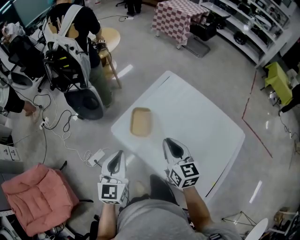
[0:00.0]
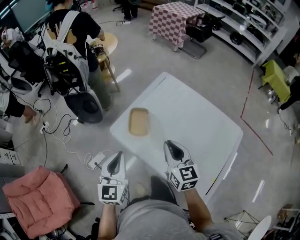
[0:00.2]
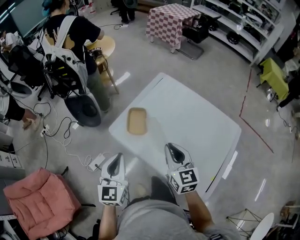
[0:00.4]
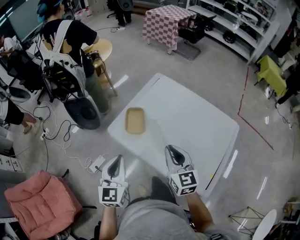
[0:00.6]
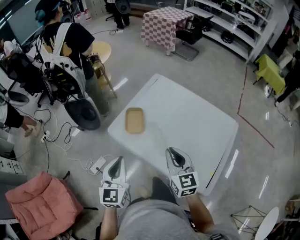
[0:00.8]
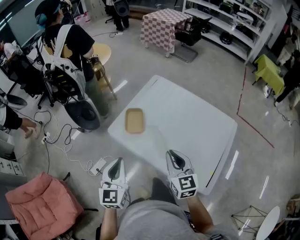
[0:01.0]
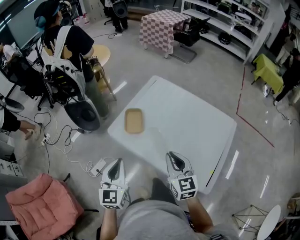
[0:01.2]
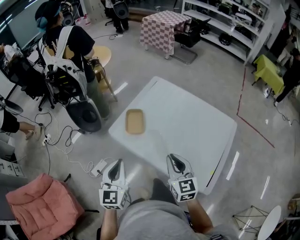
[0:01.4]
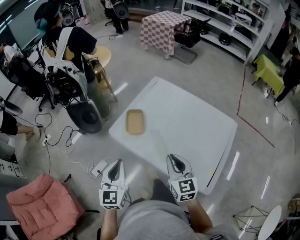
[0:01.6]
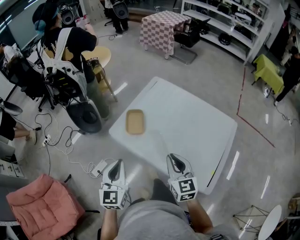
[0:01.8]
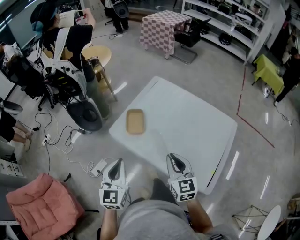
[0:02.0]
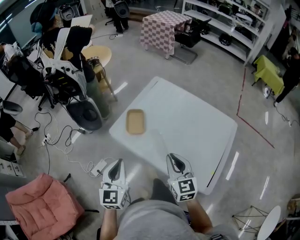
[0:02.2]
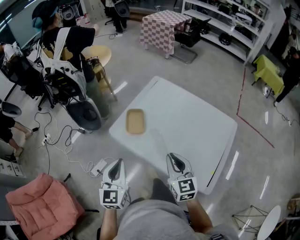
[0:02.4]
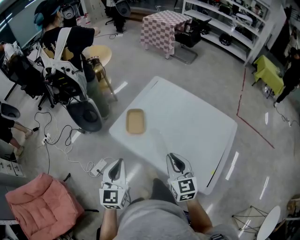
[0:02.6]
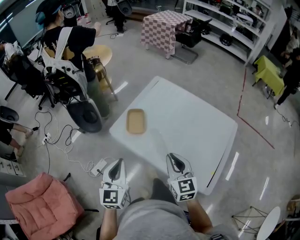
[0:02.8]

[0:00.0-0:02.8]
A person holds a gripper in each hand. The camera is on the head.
0:00.0 to 0:01.4: The left gripper moves backward, roughly 10 cm. The right gripper heads backward, covering roughly 15 cm.
0:01.4 to 0:02.8: There are only small adjustments of the grippers.

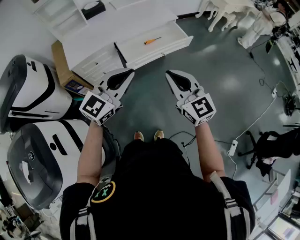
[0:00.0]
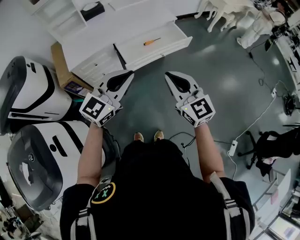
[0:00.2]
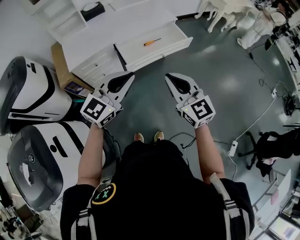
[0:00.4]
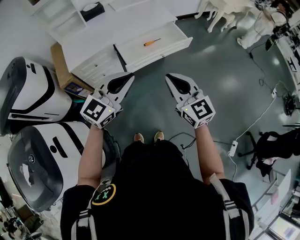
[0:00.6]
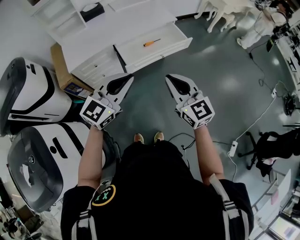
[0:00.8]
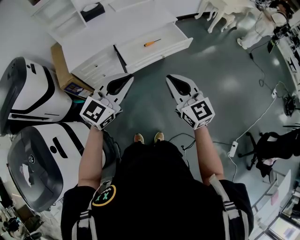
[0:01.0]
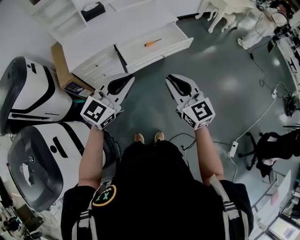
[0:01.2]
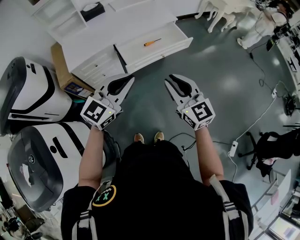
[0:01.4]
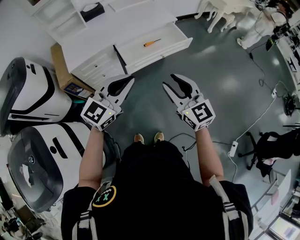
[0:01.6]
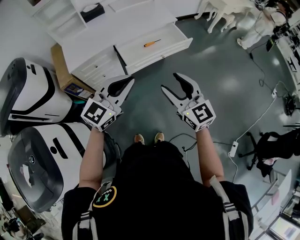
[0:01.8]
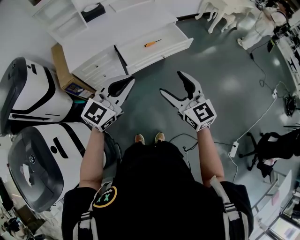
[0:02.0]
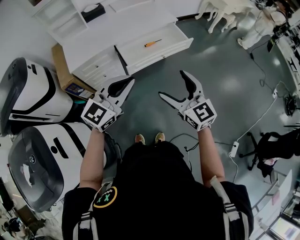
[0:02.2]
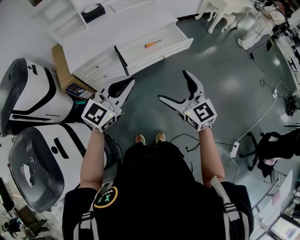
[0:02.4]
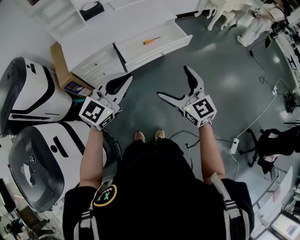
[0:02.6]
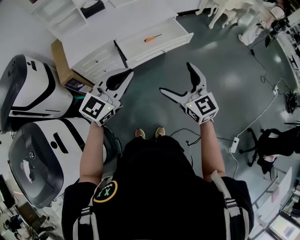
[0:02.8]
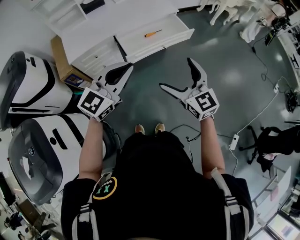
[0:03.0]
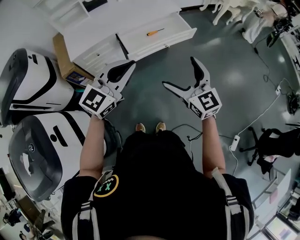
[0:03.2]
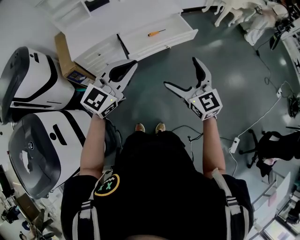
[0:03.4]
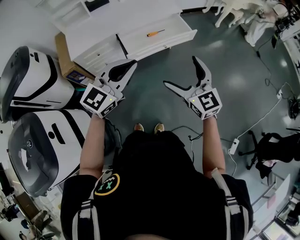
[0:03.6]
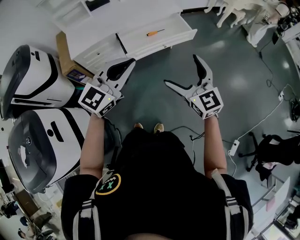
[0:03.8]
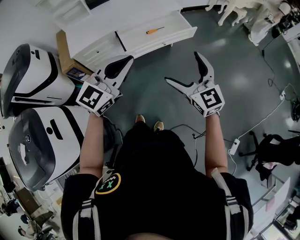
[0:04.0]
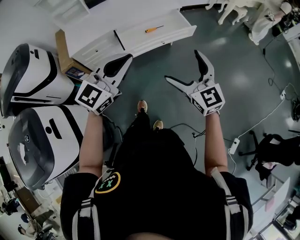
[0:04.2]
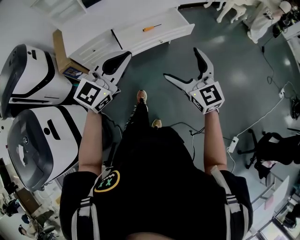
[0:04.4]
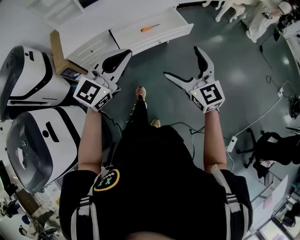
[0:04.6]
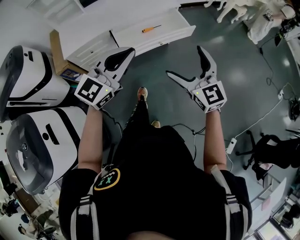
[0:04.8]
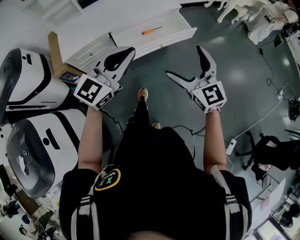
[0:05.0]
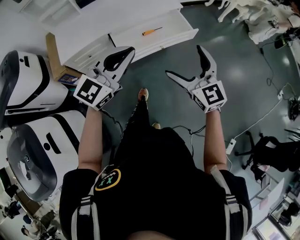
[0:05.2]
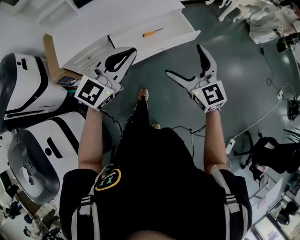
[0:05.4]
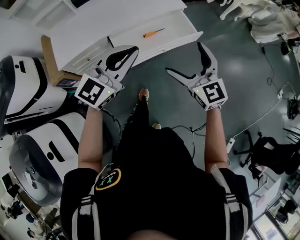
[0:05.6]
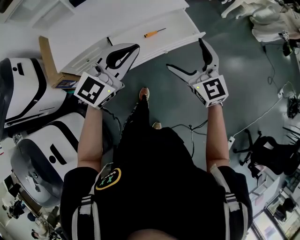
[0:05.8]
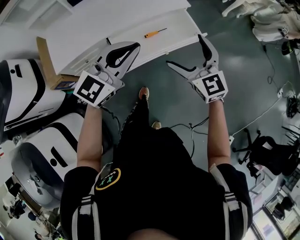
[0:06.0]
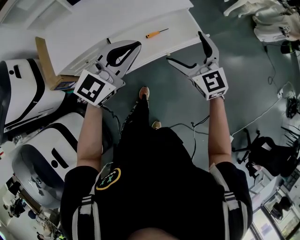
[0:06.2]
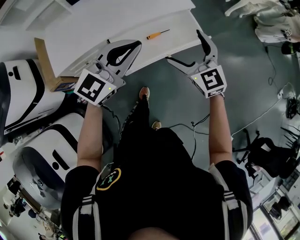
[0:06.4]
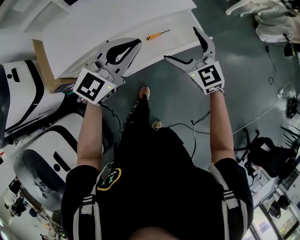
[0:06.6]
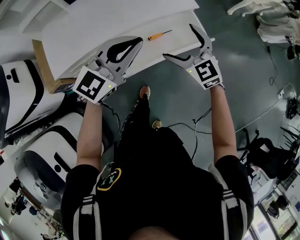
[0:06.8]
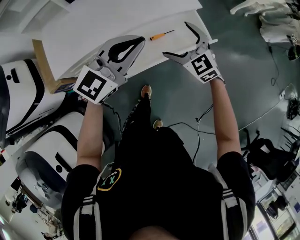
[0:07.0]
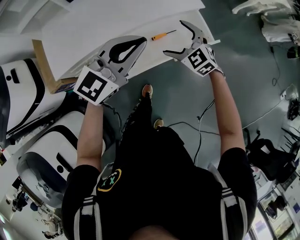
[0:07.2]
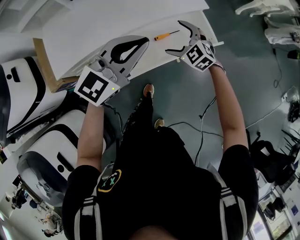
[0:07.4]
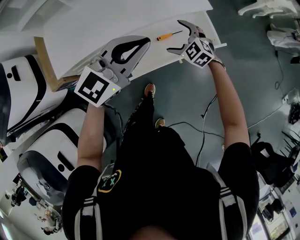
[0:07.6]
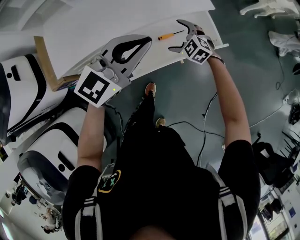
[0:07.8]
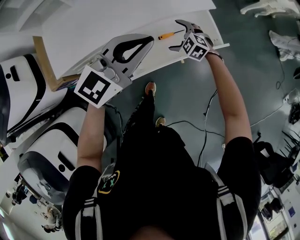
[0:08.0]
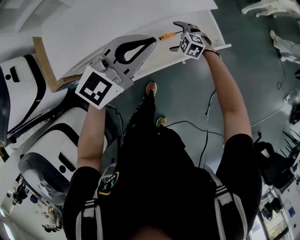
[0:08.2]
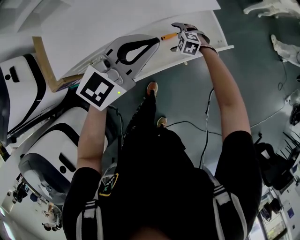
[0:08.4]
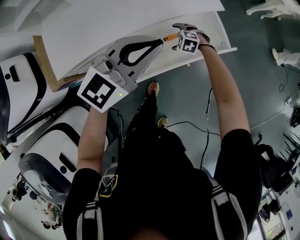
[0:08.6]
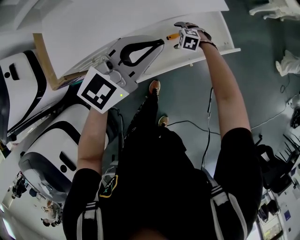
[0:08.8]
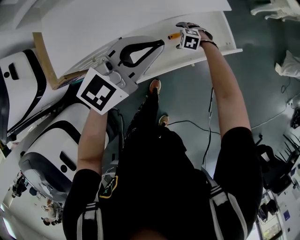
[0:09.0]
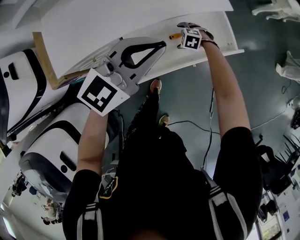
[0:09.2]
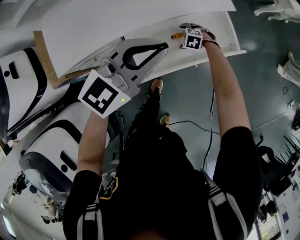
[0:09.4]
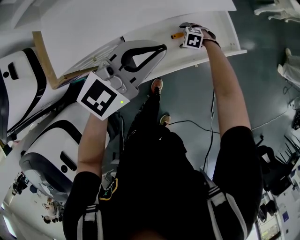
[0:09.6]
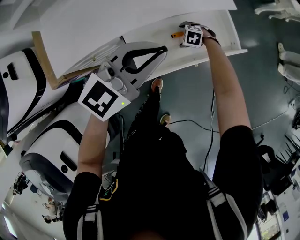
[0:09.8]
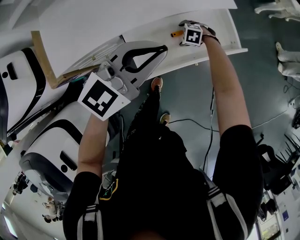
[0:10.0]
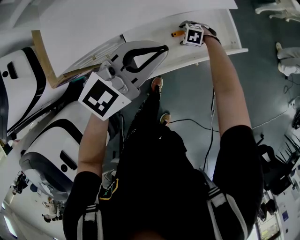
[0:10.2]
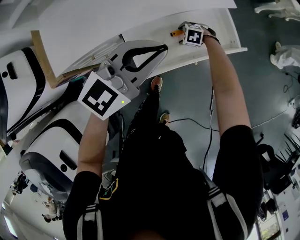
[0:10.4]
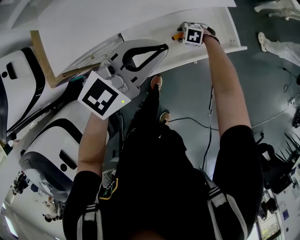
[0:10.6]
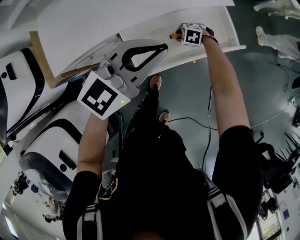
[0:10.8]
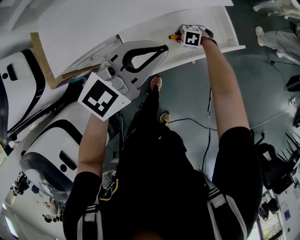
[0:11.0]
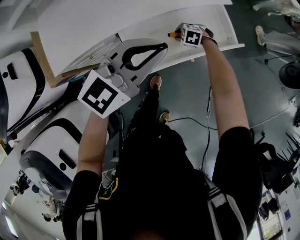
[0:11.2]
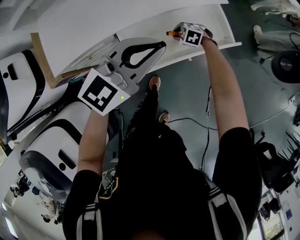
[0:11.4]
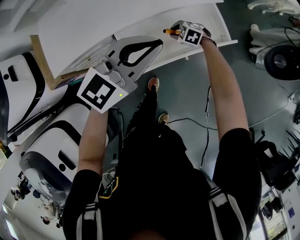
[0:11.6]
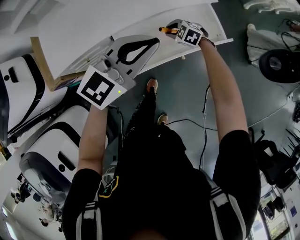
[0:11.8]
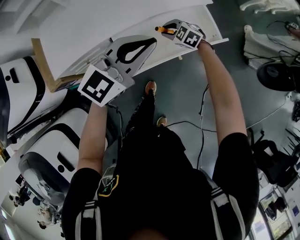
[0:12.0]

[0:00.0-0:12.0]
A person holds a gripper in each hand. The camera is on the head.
0:00.0 to 0:01.6: There are only small adjustments of the grippers.
0:01.6 to 0:03.0: The right gripper opens up.
0:03.0 to 0:04.4: The grippers both shift to the right by approximately 5 cm.
0:04.4 to 0:06.0: Both grippers travel together forward, approximately 25 cm.
0:06.0 to 0:07.6: The right gripper is displaced downward and forward by approximately 30 cm, and tilts its fingers roughly 30 degrees downward. The left gripper goes some 10 cm forward.
0:07.6 to 0:09.0: The right gripper is displaced downward by approximately 20 cm, and tilts its fingers roughly 30 degrees downward.
0:09.0 to 0:10.4: The grippers move only a little.
0:10.4 to 0:12.0: The left gripper moves approximately 5 cm. The right gripper is displaced upward by about 15 cm, changes its angle by approximately 30 degrees, and closes up.

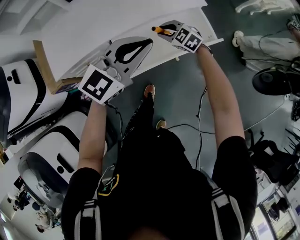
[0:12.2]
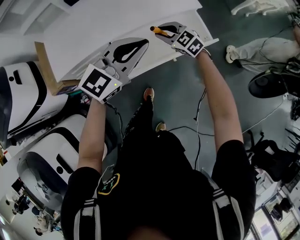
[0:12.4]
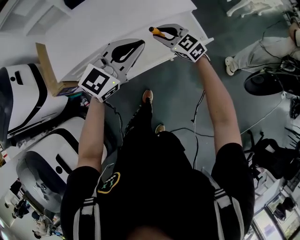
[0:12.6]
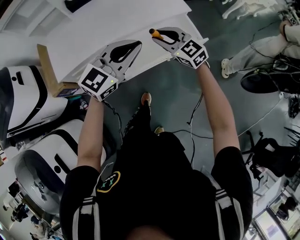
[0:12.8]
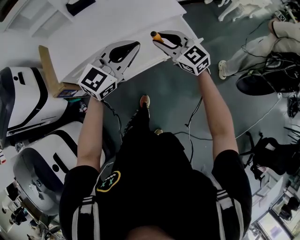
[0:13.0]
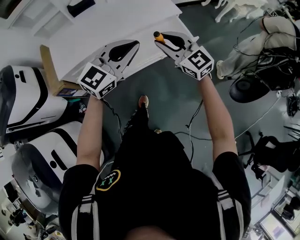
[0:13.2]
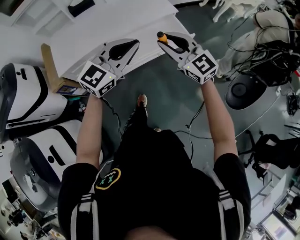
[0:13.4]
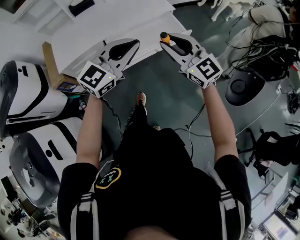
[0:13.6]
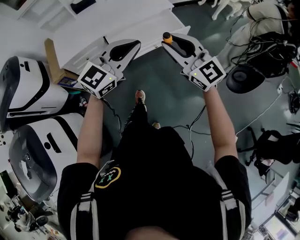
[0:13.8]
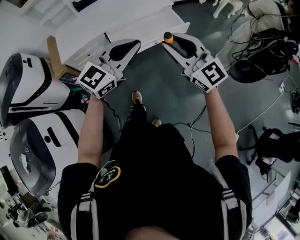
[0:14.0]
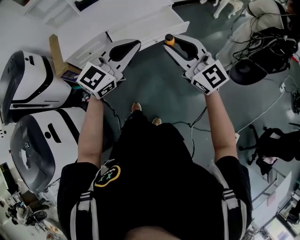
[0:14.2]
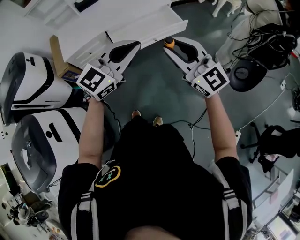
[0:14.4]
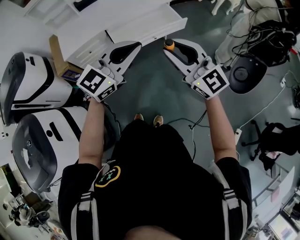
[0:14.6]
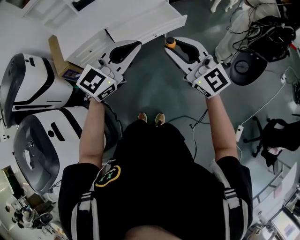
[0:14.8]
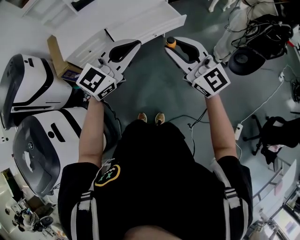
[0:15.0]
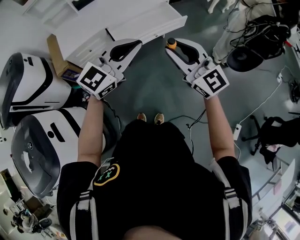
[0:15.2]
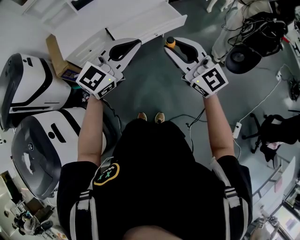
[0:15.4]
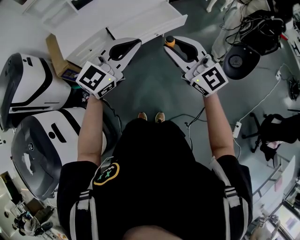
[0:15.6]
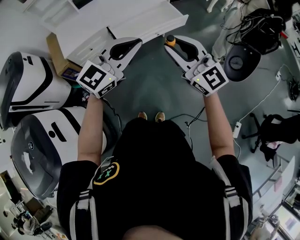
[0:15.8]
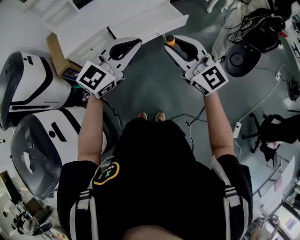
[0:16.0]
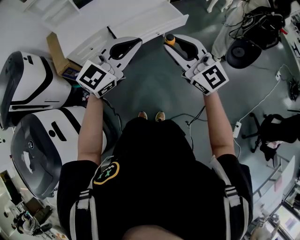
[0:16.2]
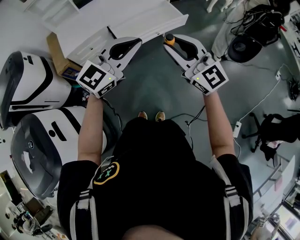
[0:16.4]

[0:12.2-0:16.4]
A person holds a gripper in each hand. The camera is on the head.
0:12.2 to 0:13.6: The left gripper goes about 20 cm backward and upward, while the right gripper travels upward and backward by approximately 40 cm, and angles its fingers upward, by roughly 40 degrees.
0:13.6 to 0:15.0: The grippers both shift backward by roughly 15 cm.
0:15.0 to 0:16.4: There are only small adjustments of the grippers.

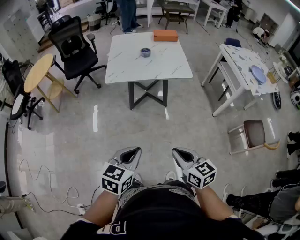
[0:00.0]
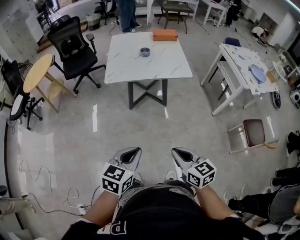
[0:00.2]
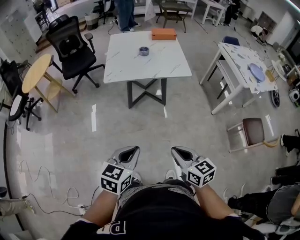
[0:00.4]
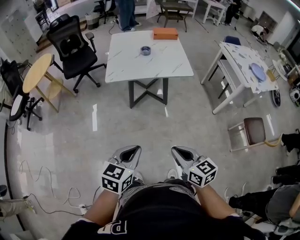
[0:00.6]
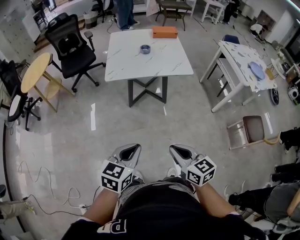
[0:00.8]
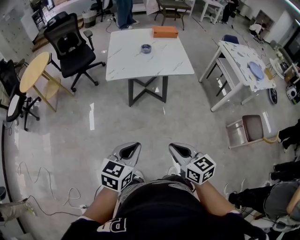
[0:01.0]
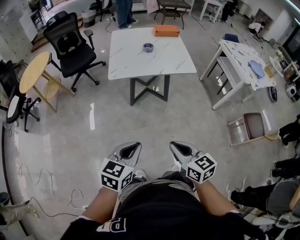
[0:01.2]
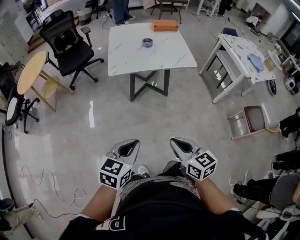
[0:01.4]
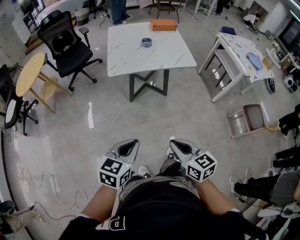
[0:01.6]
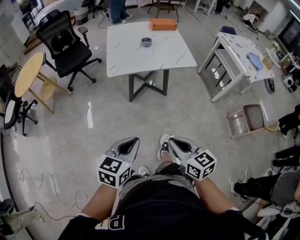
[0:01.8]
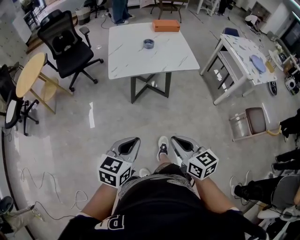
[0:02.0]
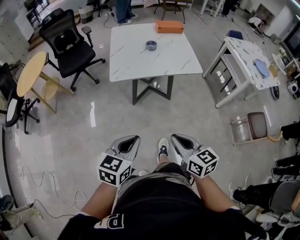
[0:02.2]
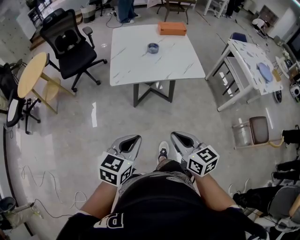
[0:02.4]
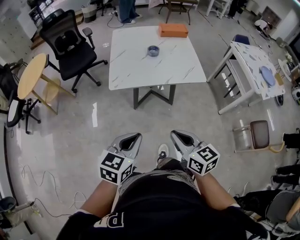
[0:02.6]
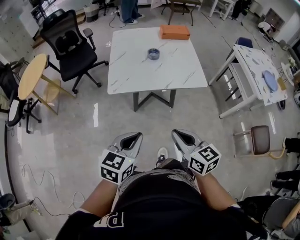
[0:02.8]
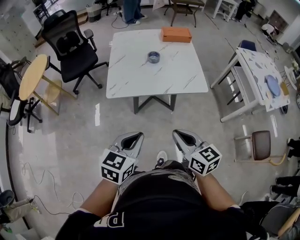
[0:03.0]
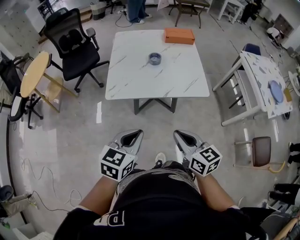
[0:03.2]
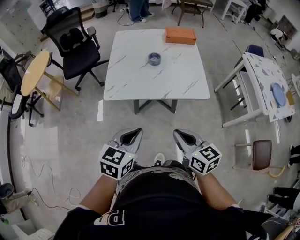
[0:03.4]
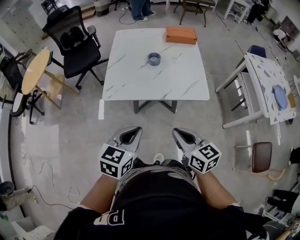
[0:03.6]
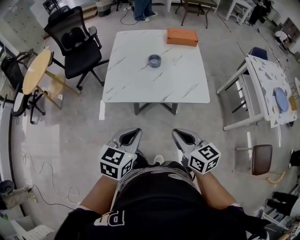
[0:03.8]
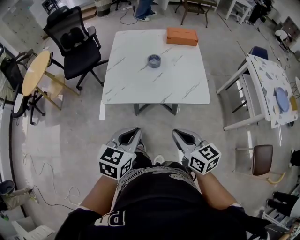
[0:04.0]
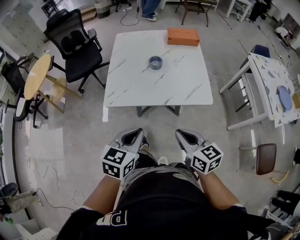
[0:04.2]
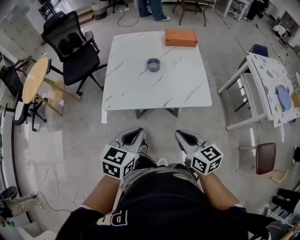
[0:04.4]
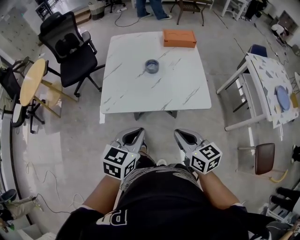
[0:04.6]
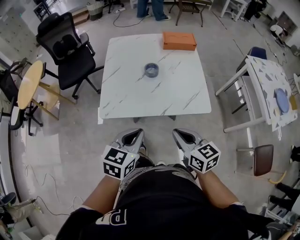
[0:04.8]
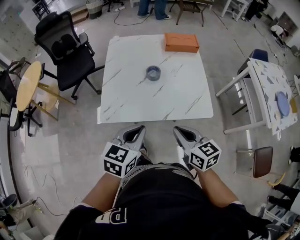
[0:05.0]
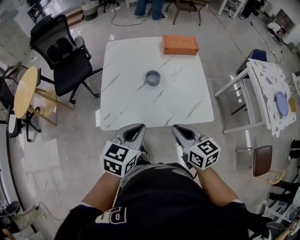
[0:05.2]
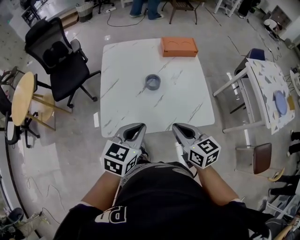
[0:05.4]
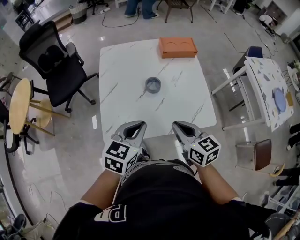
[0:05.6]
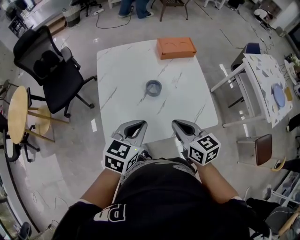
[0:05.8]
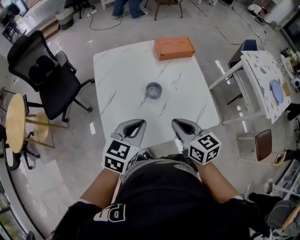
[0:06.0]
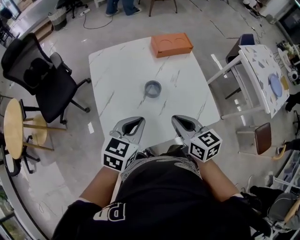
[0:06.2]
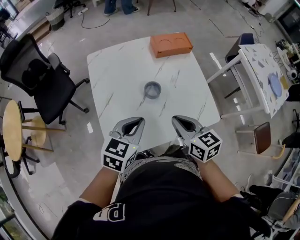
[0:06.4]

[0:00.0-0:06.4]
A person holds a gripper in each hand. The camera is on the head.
0:00.0 to 0:01.6: Both grippers travel together to the left, about 10 cm.
0:01.6 to 0:03.2: The two grippers go roughly 30 cm forward.
0:03.2 to 0:04.8: Both grippers move forward, some 15 cm.
0:04.8 to 0:06.4: The left gripper goes about 25 cm forward; the right gripper goes about 25 cm forward and to the left.
